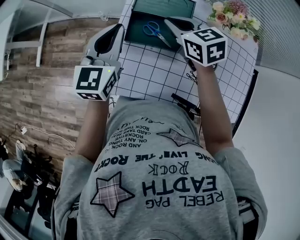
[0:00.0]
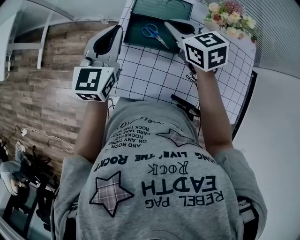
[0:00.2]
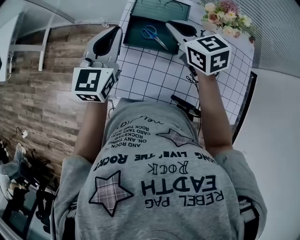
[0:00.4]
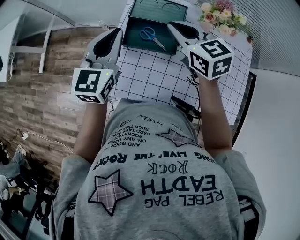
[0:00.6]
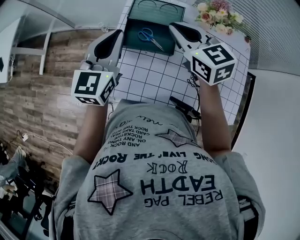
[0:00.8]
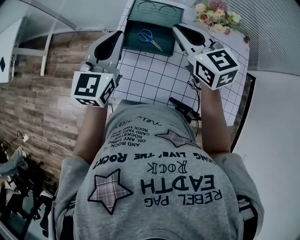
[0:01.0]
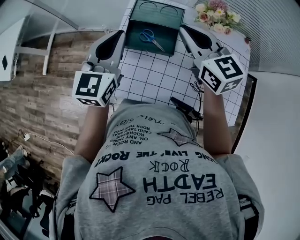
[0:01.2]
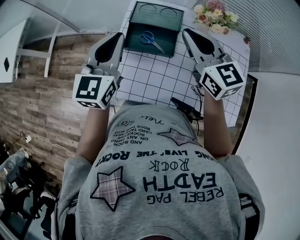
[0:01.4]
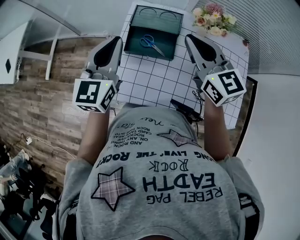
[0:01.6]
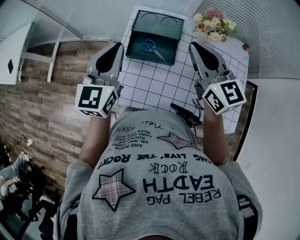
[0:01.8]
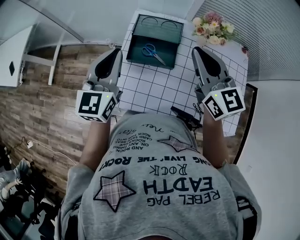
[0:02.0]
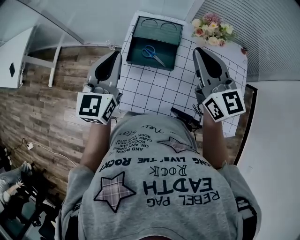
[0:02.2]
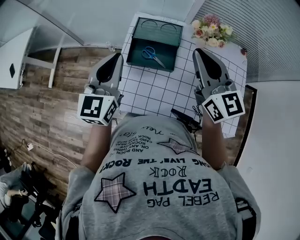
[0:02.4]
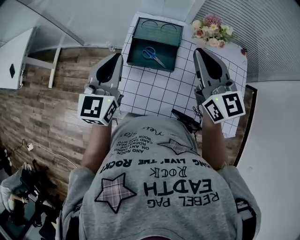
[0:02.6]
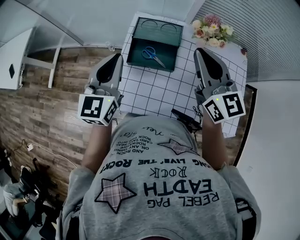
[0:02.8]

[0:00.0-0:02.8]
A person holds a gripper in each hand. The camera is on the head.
0:00.0 to 0:01.4: The left gripper goes approximately 10 cm upward and backward; the right gripper is displaced upward, backward and to the right by approximately 15 cm, and swivels about 30 degrees.
0:01.4 to 0:02.8: The right gripper moves about 5 cm.

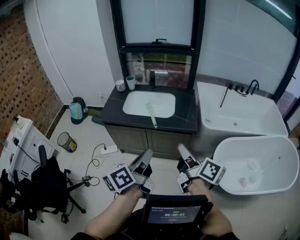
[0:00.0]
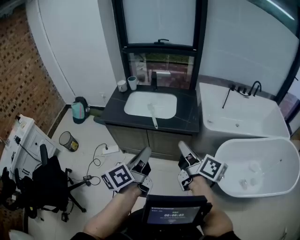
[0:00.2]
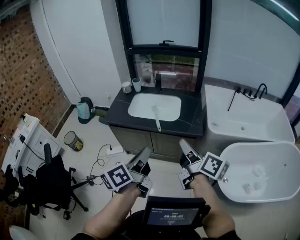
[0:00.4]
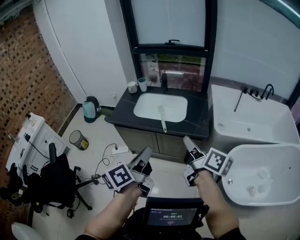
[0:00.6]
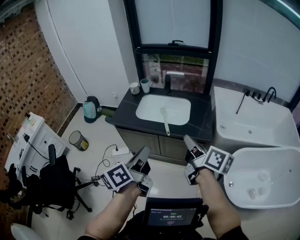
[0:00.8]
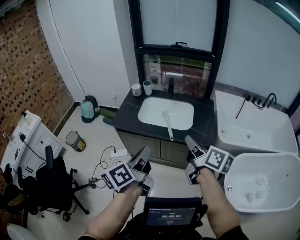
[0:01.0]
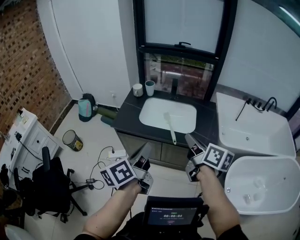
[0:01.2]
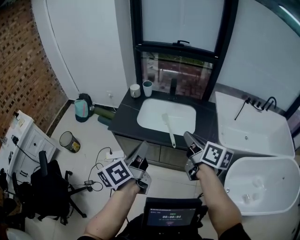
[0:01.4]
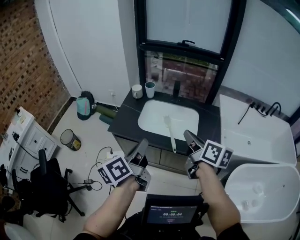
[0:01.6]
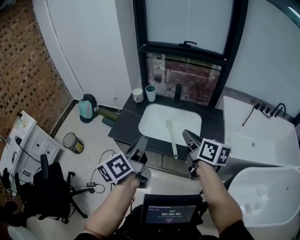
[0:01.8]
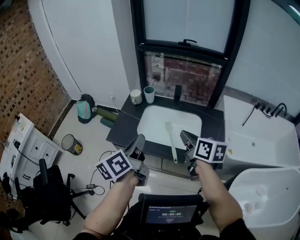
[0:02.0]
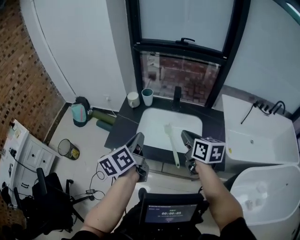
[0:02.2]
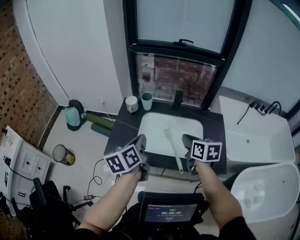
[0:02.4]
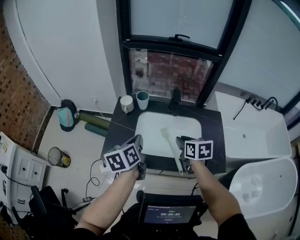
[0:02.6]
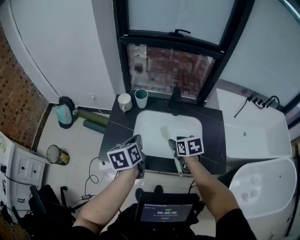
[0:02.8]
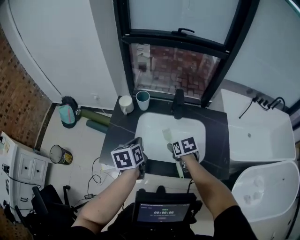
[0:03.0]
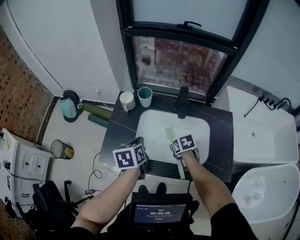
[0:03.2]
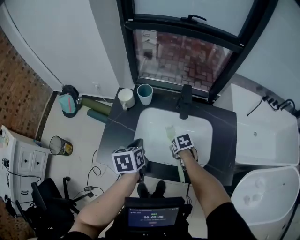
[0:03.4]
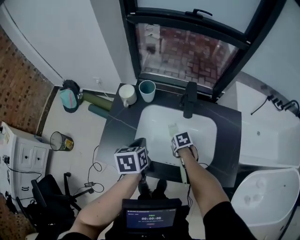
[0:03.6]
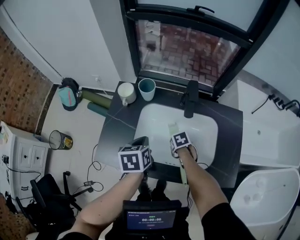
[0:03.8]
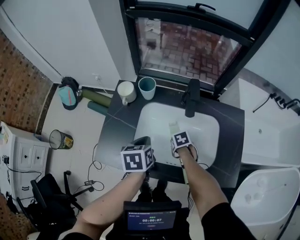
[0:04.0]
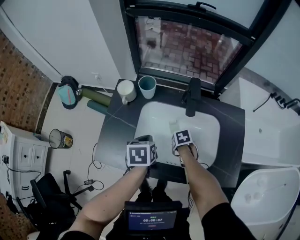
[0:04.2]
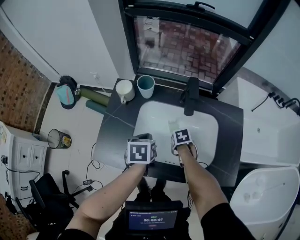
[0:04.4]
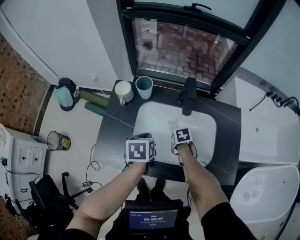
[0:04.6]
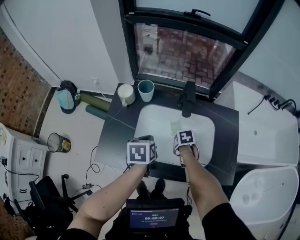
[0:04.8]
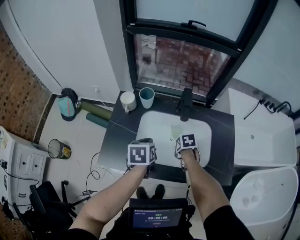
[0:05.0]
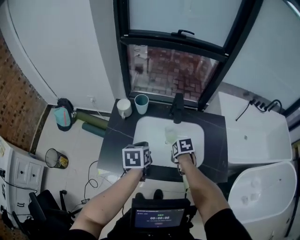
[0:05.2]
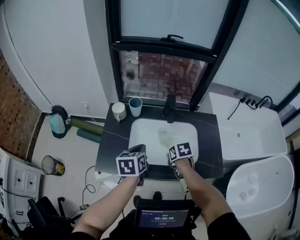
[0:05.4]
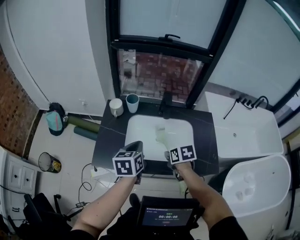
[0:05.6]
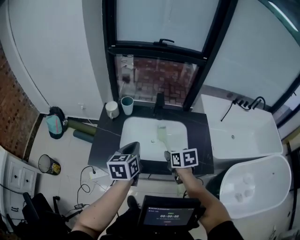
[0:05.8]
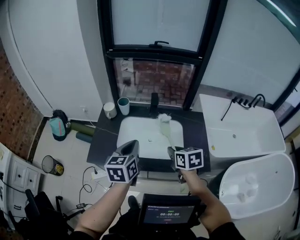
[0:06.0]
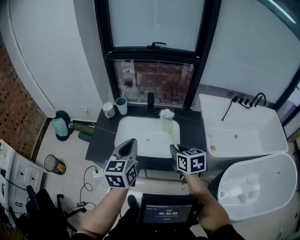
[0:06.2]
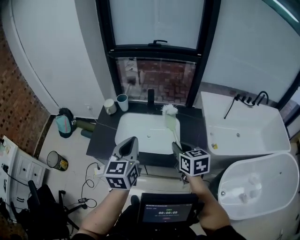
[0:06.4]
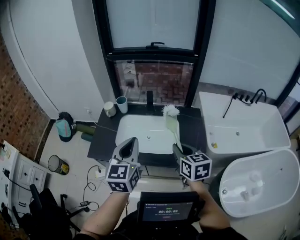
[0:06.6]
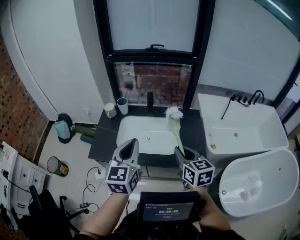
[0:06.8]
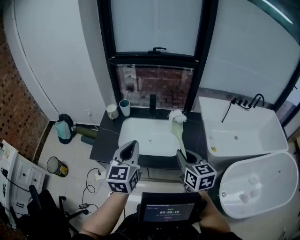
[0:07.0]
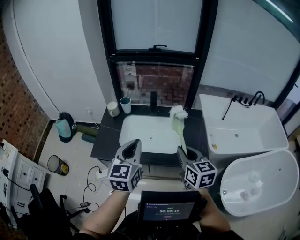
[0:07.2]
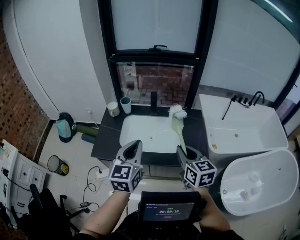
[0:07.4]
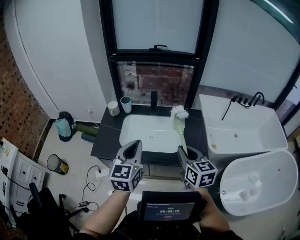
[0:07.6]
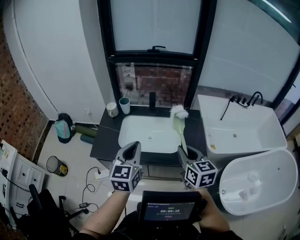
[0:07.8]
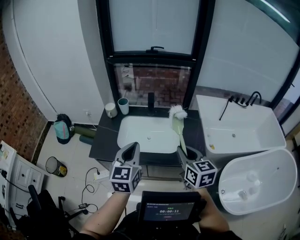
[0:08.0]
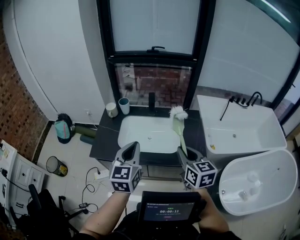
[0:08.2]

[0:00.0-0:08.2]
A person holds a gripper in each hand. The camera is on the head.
0:00.0 to 0:01.6: The left gripper heads forward and to the left, covering approximately 35 cm, while the right gripper travels forward by about 40 cm, and turns by about 30 degrees.
0:01.6 to 0:03.2: The pair of grippers is taken forward, approximately 40 cm. The left gripper goes approximately 20 cm downward, and tilts its fingers approximately 40 degrees downward. Meanwhile the right gripper heads downward, covering roughly 35 cm, tips its fingers downward by roughly 60 degrees, and opens up.
0:03.2 to 0:05.0: The right gripper moves some 15 cm downward and comes back, and closes its fingers.
0:05.0 to 0:06.6: The right gripper moves roughly 50 cm, and angles its fingers upward, by some 50 degrees. Meanwhile the left gripper changes place by some 40 cm, and tilts its fingers some 40 degrees upward.
0:06.6 to 0:08.2: The right gripper is displaced backward by roughly 5 cm; the left gripper ends up about 5 cm from where it was.

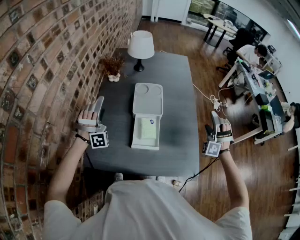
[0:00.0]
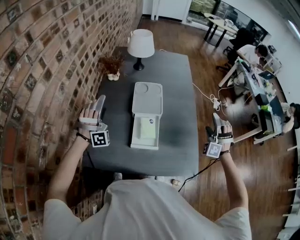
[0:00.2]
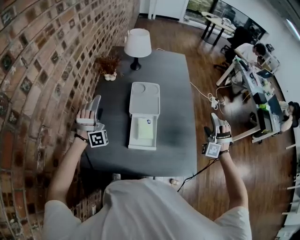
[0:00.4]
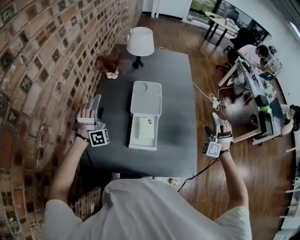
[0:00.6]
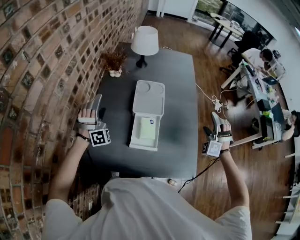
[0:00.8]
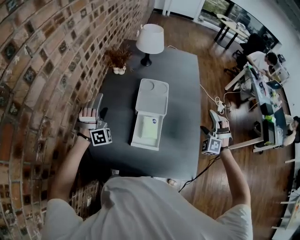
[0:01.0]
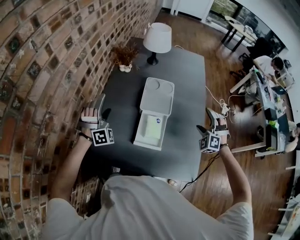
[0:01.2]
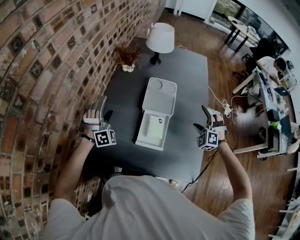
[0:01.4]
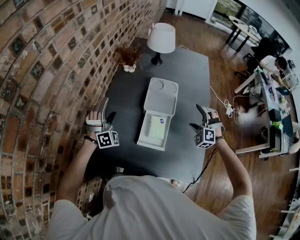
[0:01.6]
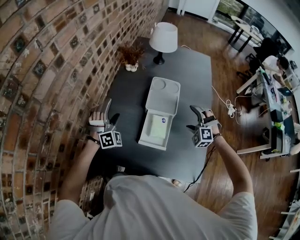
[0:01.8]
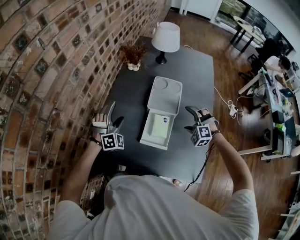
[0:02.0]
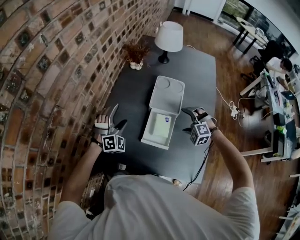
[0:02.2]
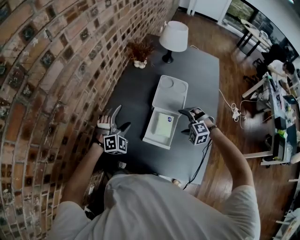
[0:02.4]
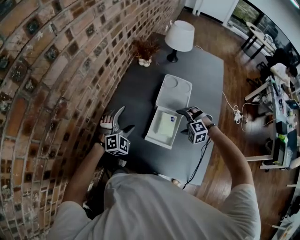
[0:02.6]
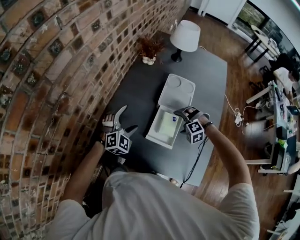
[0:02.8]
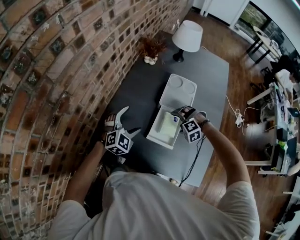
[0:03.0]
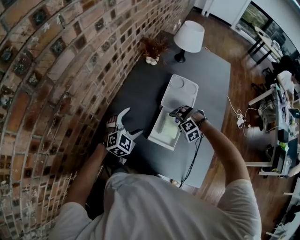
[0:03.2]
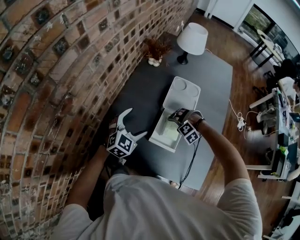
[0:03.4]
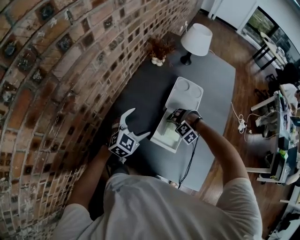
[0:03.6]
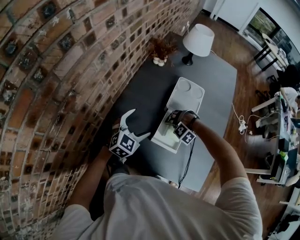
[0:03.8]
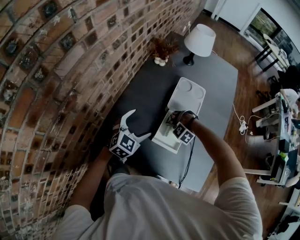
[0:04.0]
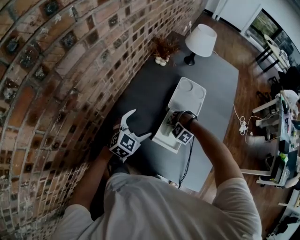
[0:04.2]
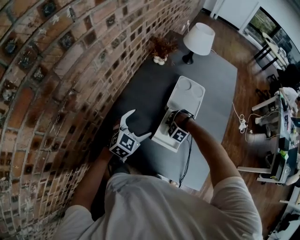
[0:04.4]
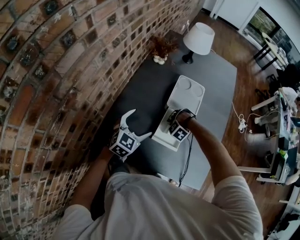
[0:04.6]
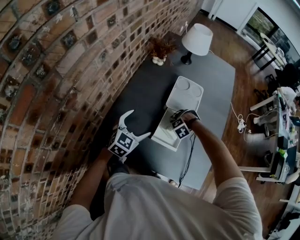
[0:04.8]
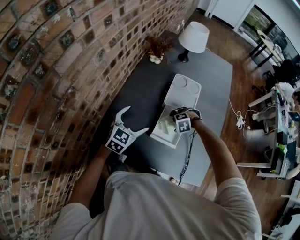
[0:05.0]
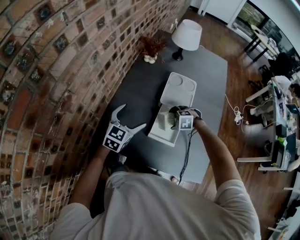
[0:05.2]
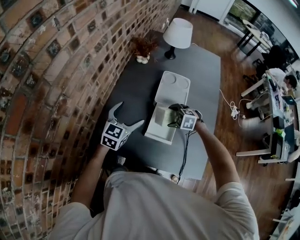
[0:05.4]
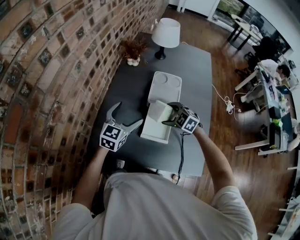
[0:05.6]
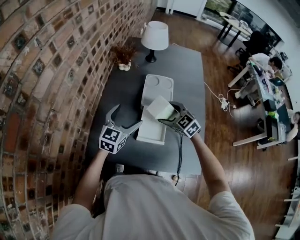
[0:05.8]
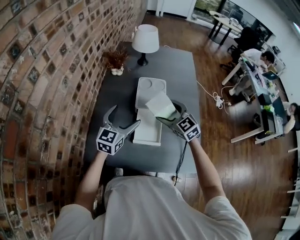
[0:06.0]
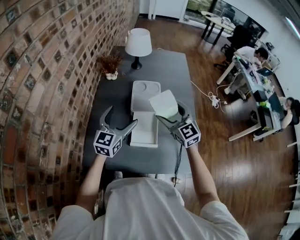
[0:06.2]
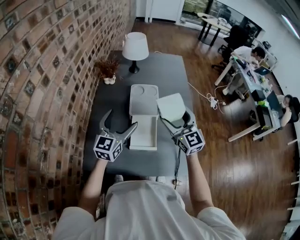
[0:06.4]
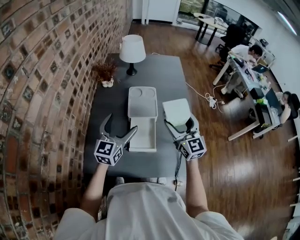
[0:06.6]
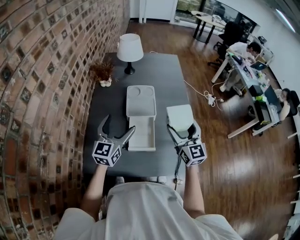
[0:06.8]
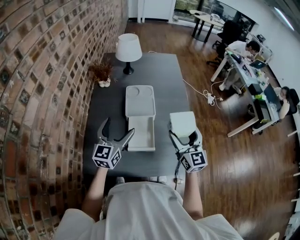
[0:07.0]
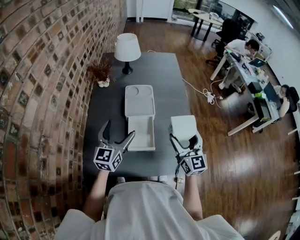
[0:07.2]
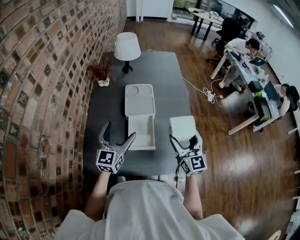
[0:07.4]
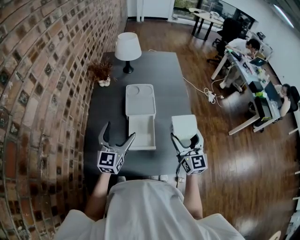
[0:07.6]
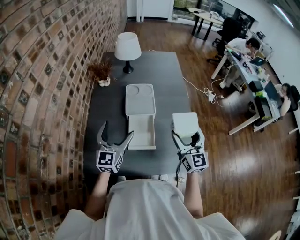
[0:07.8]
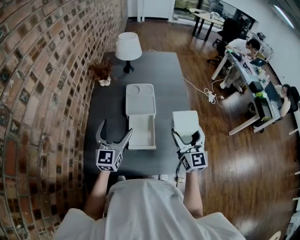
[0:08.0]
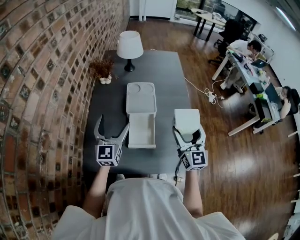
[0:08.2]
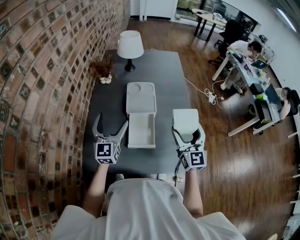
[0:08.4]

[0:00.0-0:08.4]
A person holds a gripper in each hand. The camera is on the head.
0:00.0 to 0:01.4: The left gripper travels downward by about 5 cm, and turns by roughly 20 degrees. The right gripper travels to the left, forward and downward by approximately 15 cm, and swivels about 30 degrees.
0:01.4 to 0:02.8: The left gripper moves backward and downward, roughly 10 cm, and turns by about 40 degrees. Meanwhile the right gripper shifts about 20 cm to the left and downward, and points its fingers some 30 degrees further downward.
0:02.8 to 0:04.2: The left gripper turns by approximately 30 degrees; the right gripper goes approximately 10 cm downward, and changes its angle by approximately 40 degrees.
0:04.2 to 0:05.6: The right gripper heads upward, covering approximately 15 cm, and twists roughly 80 degrees clockwise, seen from behind. Meanwhile the left gripper shifts by some 5 cm.
0:05.6 to 0:07.0: The right gripper goes about 20 cm upward, and tilts its fingers about 50 degrees upward, while the left gripper is displaced upward by about 5 cm.
0:07.0 to 0:08.4: The grippers make only small movements.

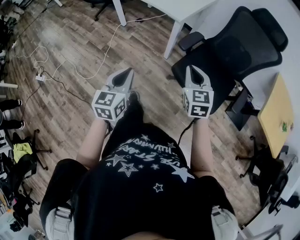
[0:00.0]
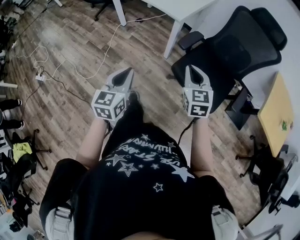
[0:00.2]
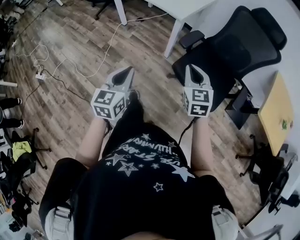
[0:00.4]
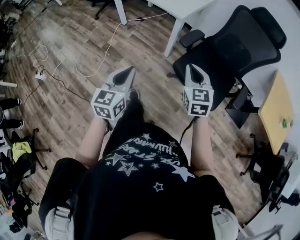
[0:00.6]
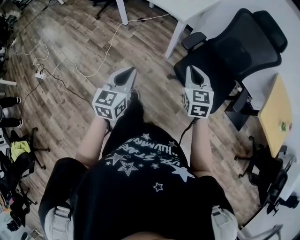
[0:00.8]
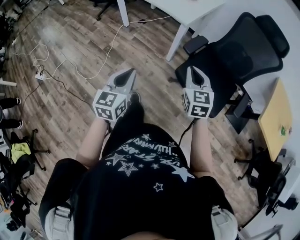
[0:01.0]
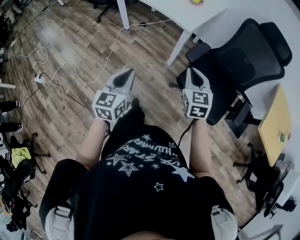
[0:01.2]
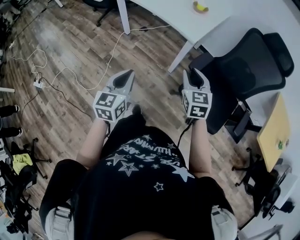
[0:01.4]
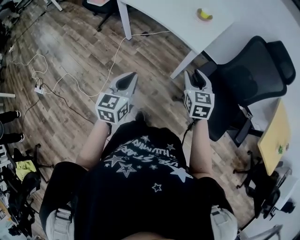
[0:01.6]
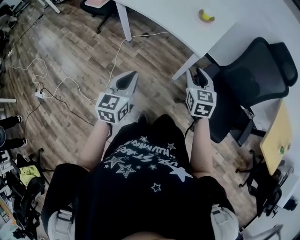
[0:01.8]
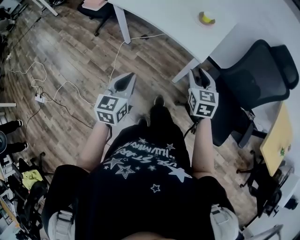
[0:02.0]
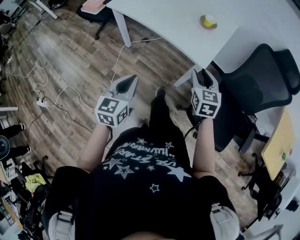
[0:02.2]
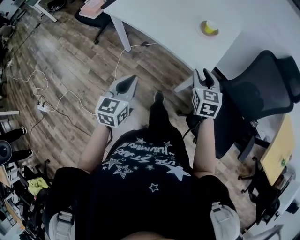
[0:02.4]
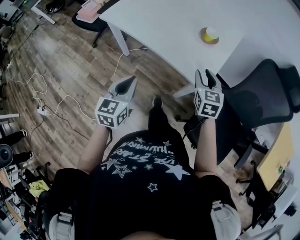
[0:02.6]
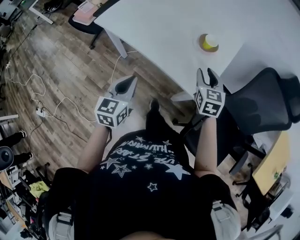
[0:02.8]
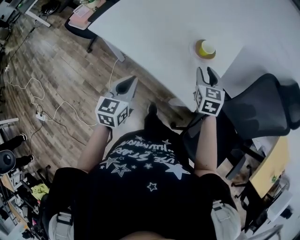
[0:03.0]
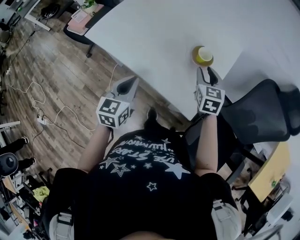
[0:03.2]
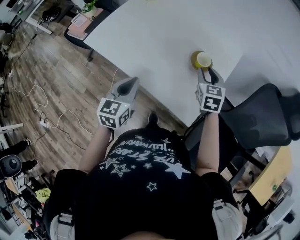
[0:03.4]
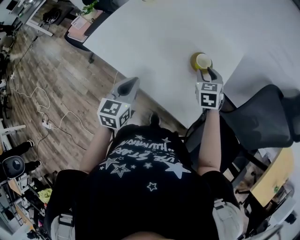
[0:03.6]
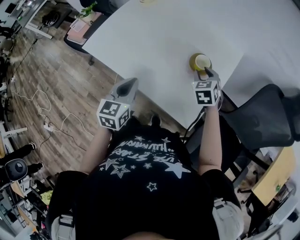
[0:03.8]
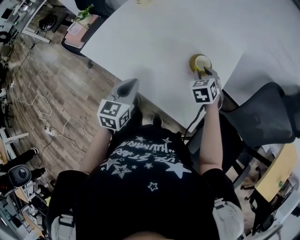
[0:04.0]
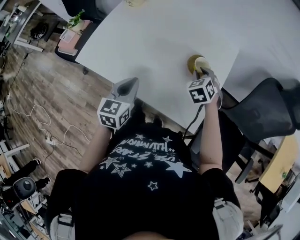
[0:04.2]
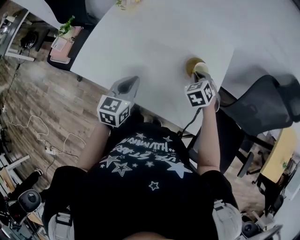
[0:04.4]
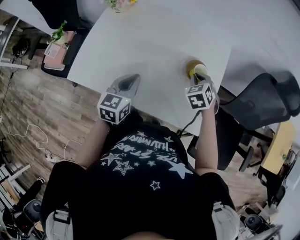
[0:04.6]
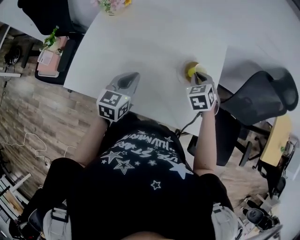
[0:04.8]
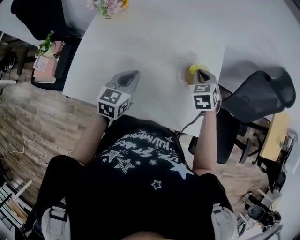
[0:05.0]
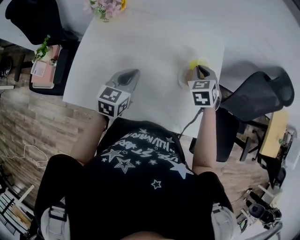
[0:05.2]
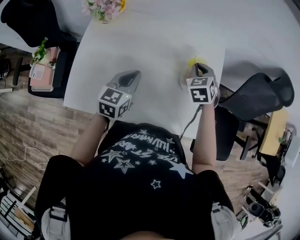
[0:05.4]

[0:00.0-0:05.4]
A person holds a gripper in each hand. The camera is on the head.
0:00.0 to 0:01.4: Both grippers travel together forward and to the left, roughly 15 cm. The right gripper opens its fingers.
0:01.4 to 0:02.8: Both grippers travel together forward, roughly 40 cm.
0:02.8 to 0:04.0: The two grippers go approximately 15 cm forward. The right gripper rotates approximately 30 degrees.
0:04.0 to 0:05.4: The right gripper changes place by roughly 10 cm, turns by approximately 20 degrees, and closes up, while the left gripper moves some 20 cm, and rotates approximately 30 degrees.
